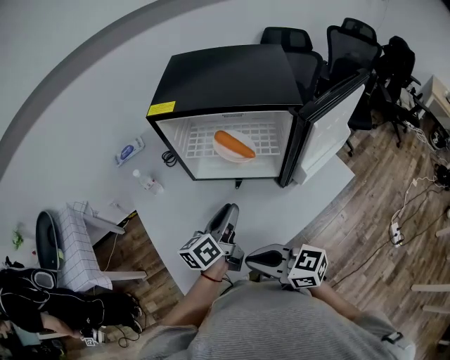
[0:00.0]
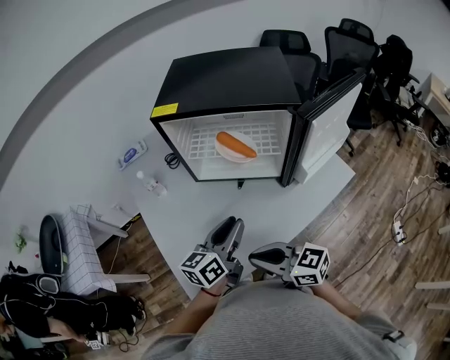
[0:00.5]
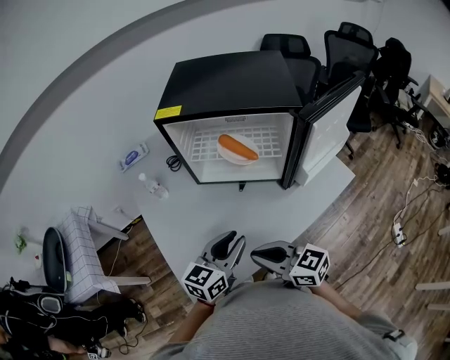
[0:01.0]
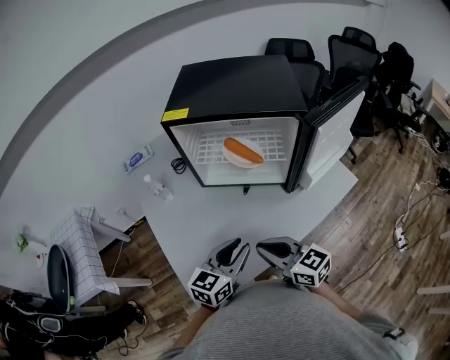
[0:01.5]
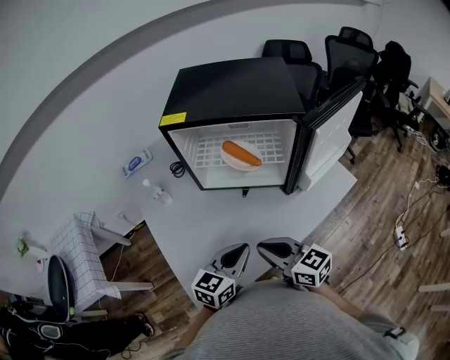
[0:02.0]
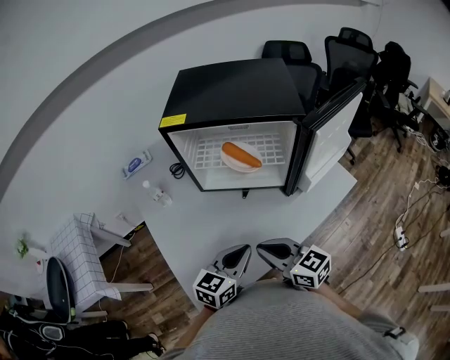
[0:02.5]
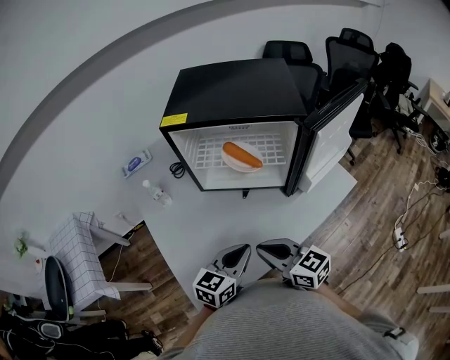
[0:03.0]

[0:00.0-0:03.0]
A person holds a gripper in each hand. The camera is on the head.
0:00.0 to 0:01.5: The left gripper shifts some 10 cm backward, and turns by some 40 degrees.
0:01.5 to 0:03.0: The left gripper closes.

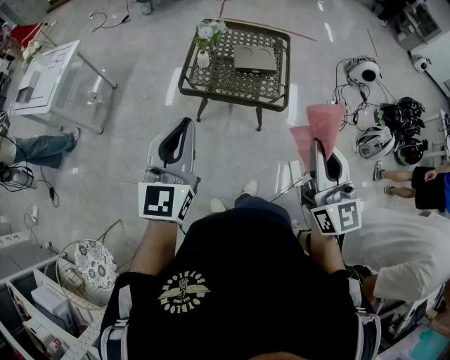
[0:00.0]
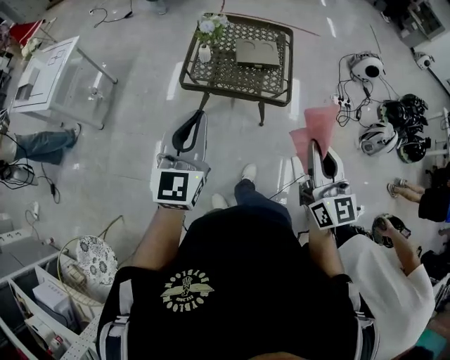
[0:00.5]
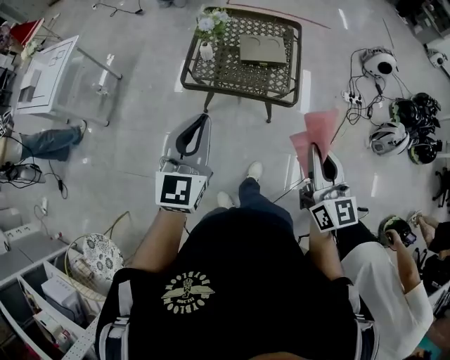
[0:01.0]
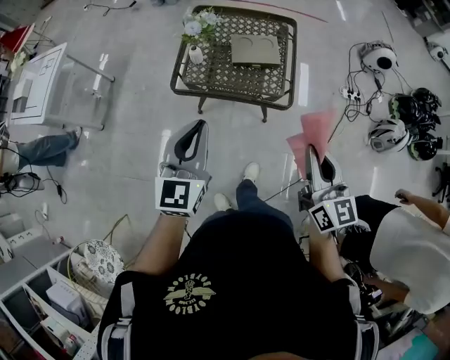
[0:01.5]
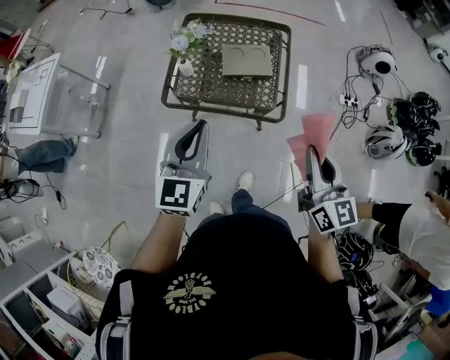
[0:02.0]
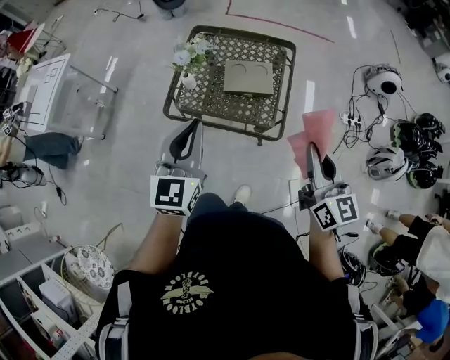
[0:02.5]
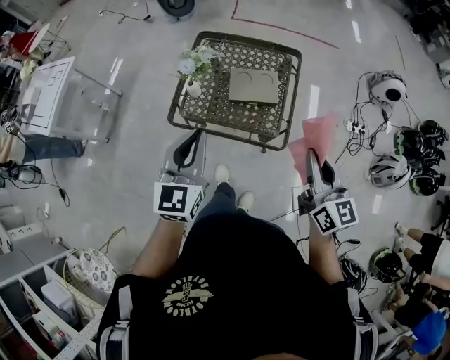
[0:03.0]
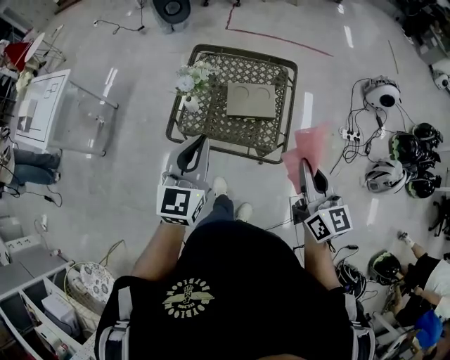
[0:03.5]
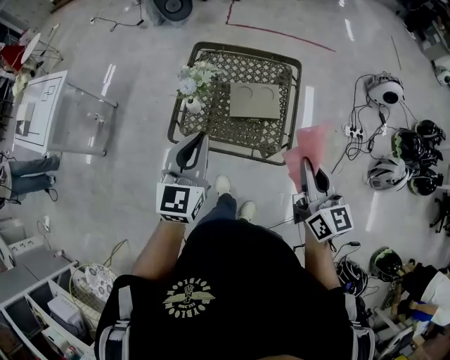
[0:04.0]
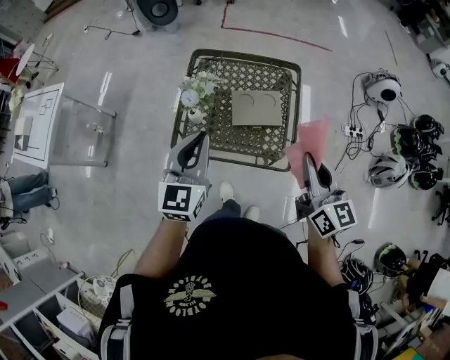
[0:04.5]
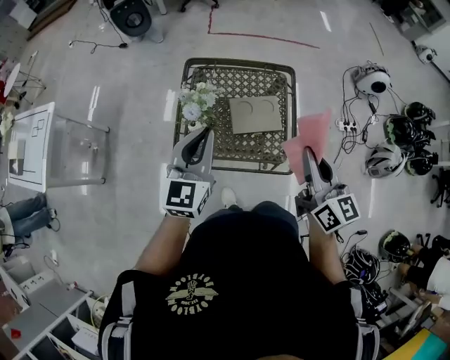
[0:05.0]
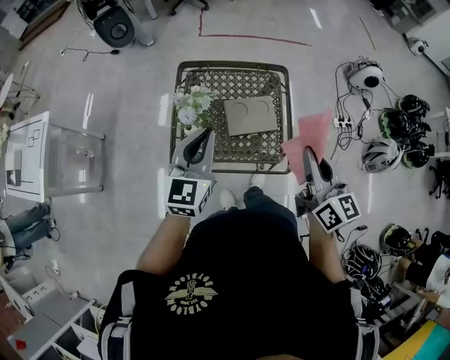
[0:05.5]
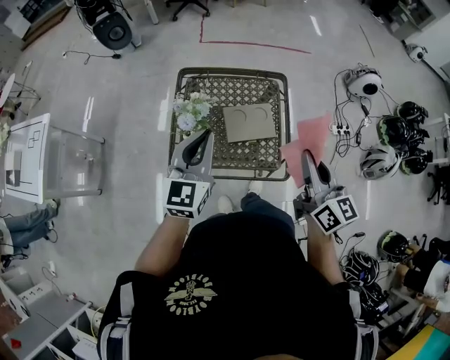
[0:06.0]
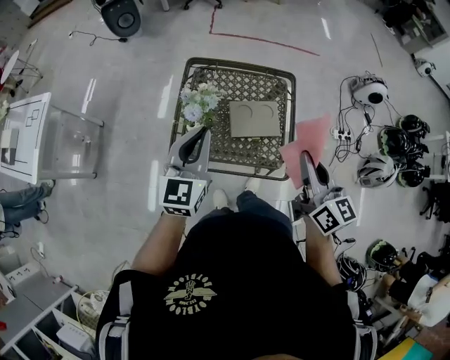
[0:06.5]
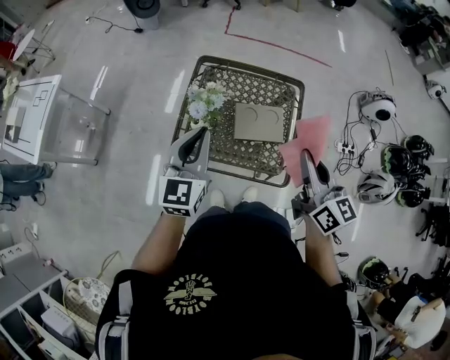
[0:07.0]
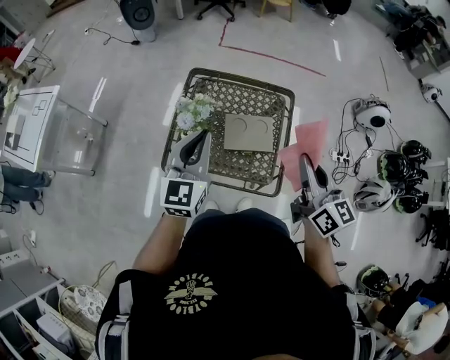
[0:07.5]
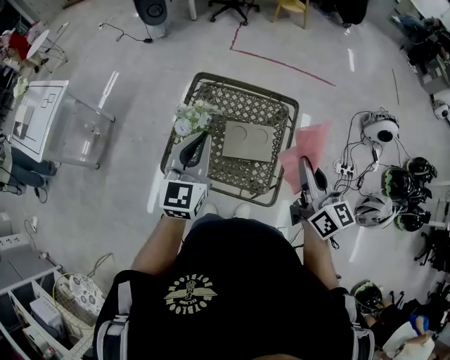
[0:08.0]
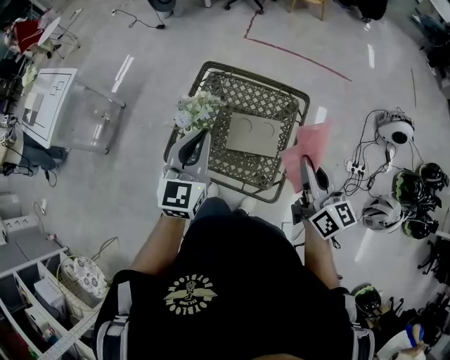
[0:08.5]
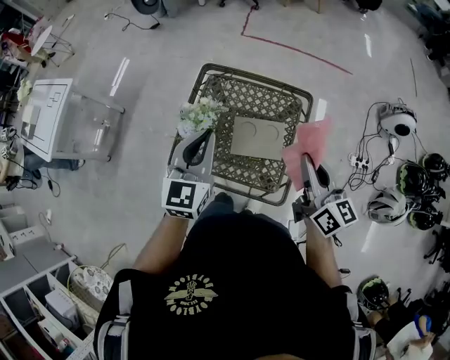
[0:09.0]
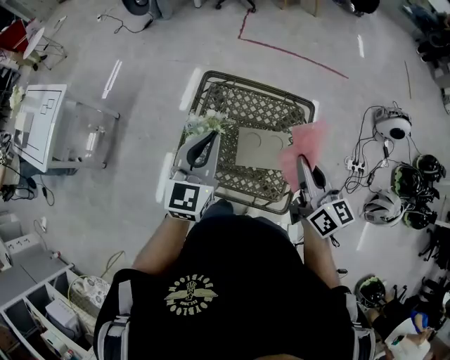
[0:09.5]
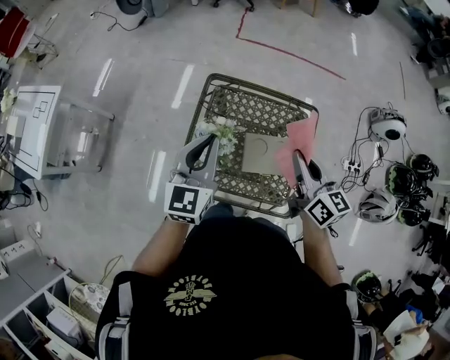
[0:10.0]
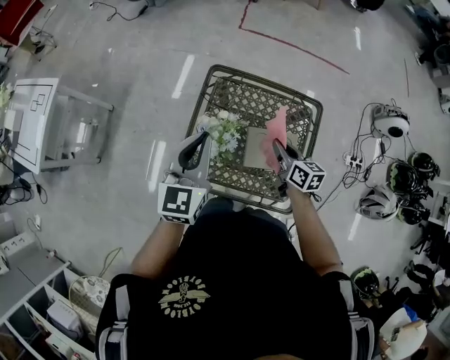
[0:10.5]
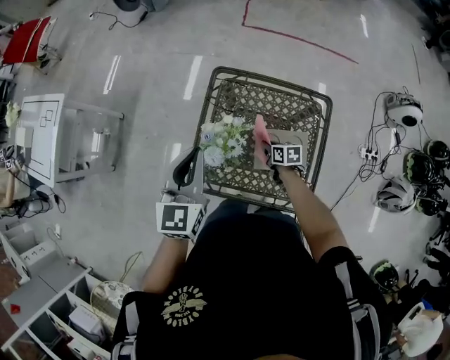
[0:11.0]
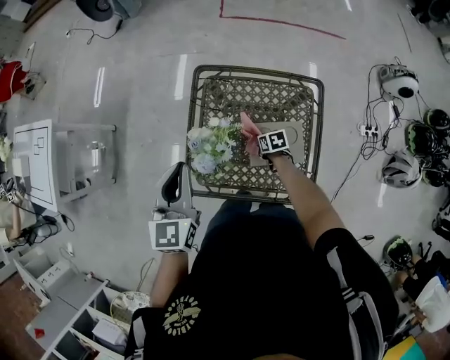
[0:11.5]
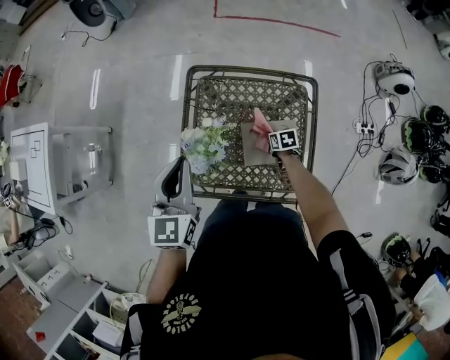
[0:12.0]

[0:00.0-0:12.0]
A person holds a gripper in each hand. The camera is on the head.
0:00.0 to 0:02.0: The right gripper travels forward, downward and to the right by about 25 cm. Meanwhile the left gripper moves forward, to the right and downward, roughly 25 cm.
0:02.0 to 0:04.0: Both grippers move forward, roughly 15 cm.
0:04.0 to 0:06.0: The left gripper goes some 10 cm forward. Meanwhile the right gripper heads forward and to the left, covering roughly 10 cm.
0:06.0 to 0:08.0: The left gripper changes place by about 5 cm; the right gripper heads forward and to the right, covering approximately 10 cm.
0:08.0 to 0:10.0: The left gripper goes about 15 cm forward and to the left. The right gripper is displaced forward, to the left and downward by roughly 20 cm.
0:10.0 to 0:12.0: The right gripper moves downward, roughly 40 cm, and tilts its fingers approximately 50 degrees downward.

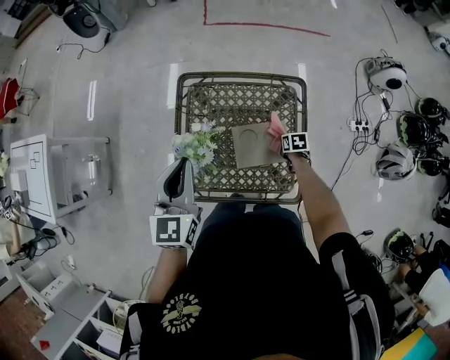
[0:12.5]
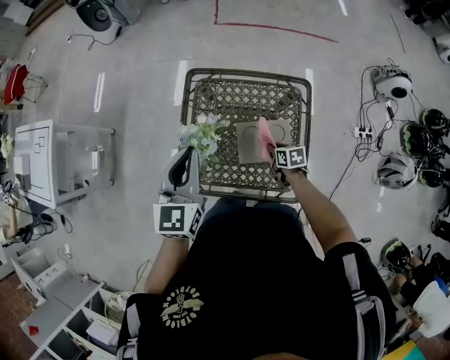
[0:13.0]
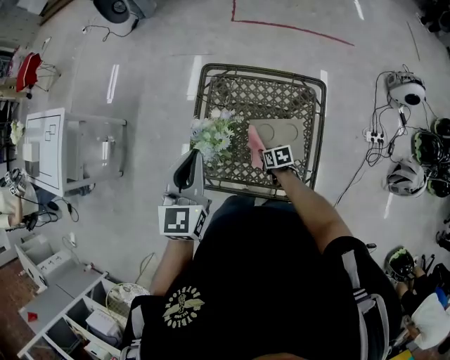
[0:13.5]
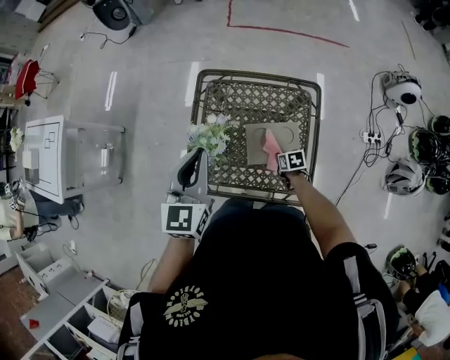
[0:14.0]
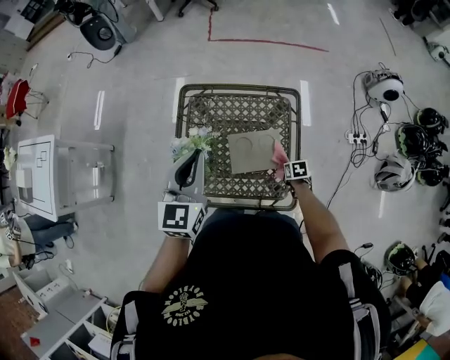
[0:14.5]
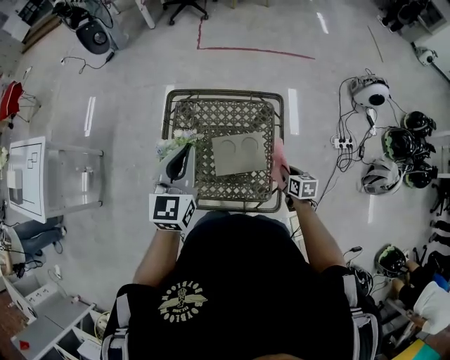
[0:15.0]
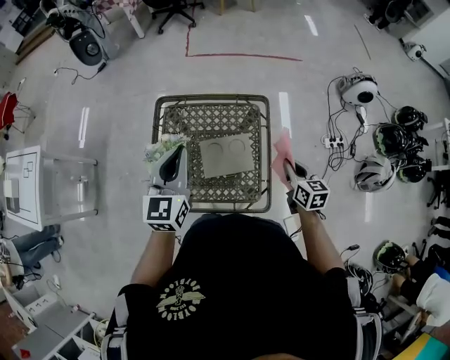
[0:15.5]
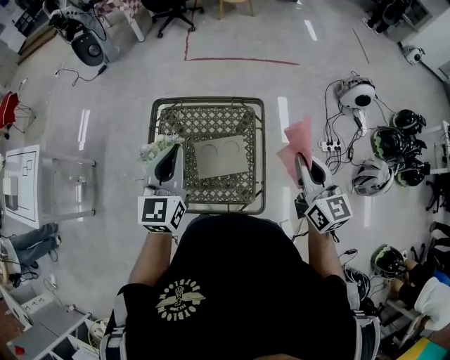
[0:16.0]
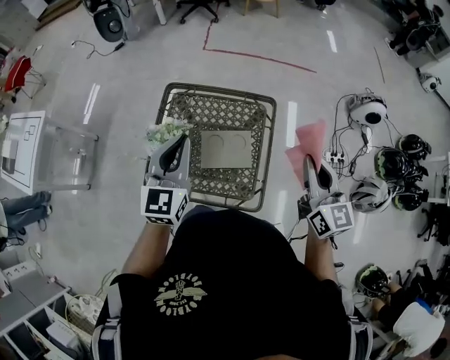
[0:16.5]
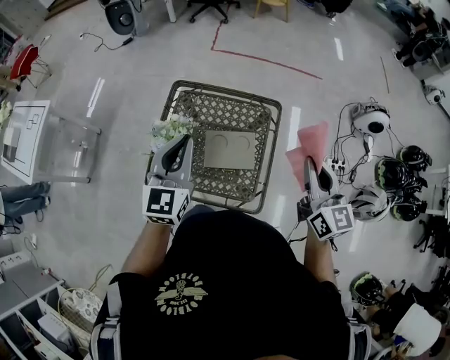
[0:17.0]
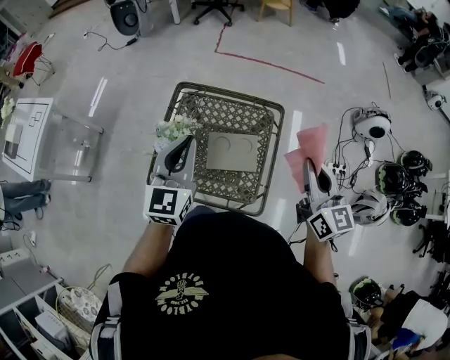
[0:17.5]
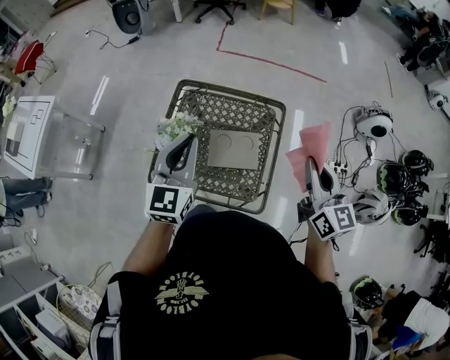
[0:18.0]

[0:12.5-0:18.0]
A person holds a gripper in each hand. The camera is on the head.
0:12.5 to 0:14.5: The left gripper travels to the right by some 5 cm; the right gripper travels backward by approximately 10 cm, and moves roughly 20 cm to the left and comes back.
0:14.5 to 0:16.0: The right gripper moves upward, some 50 cm, and points its fingers about 60 degrees further upward. The left gripper moves to the right, roughly 5 cm.
0:16.0 to 0:18.0: The grippers move only a little.

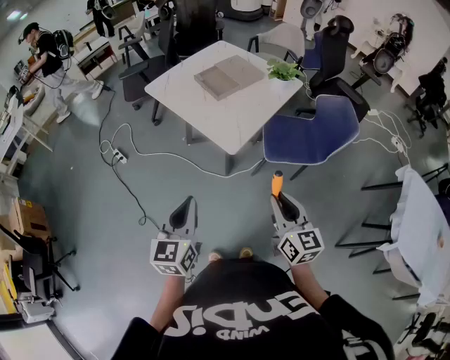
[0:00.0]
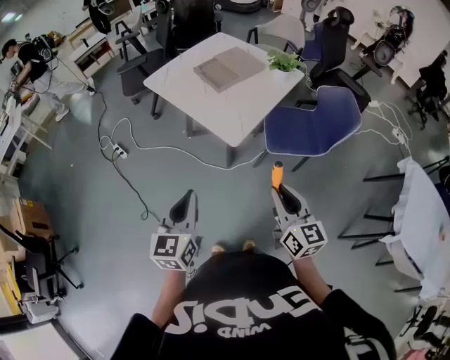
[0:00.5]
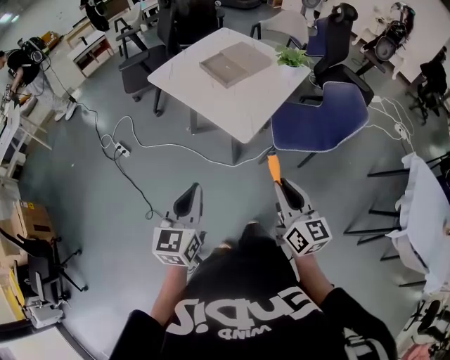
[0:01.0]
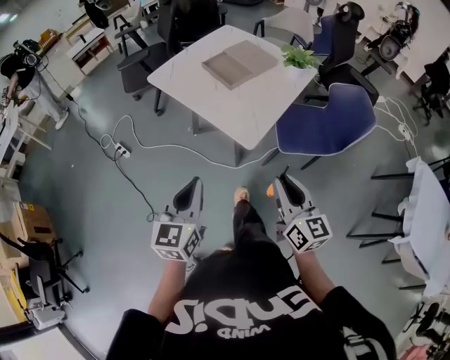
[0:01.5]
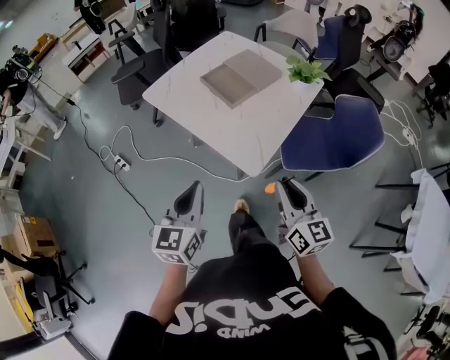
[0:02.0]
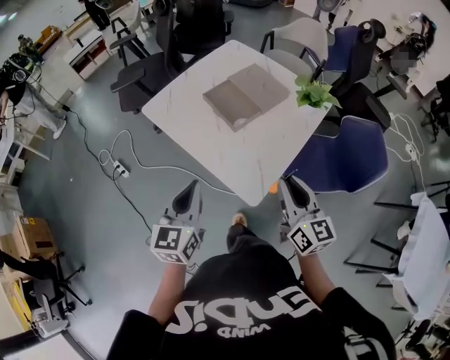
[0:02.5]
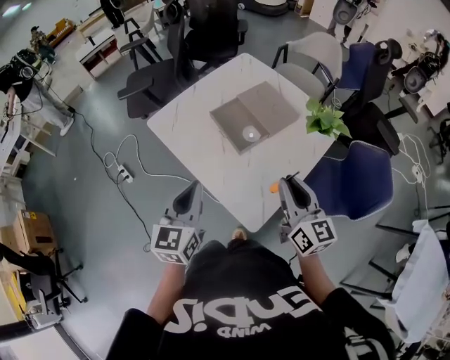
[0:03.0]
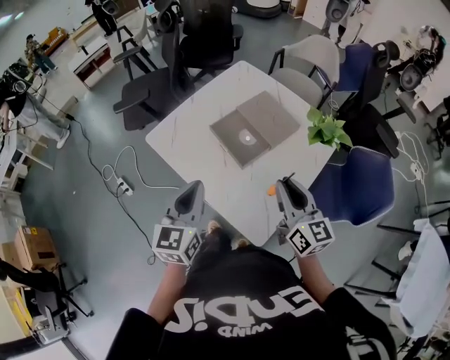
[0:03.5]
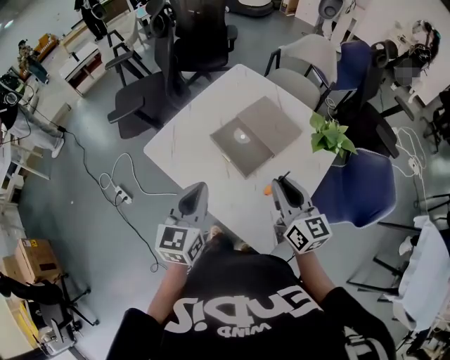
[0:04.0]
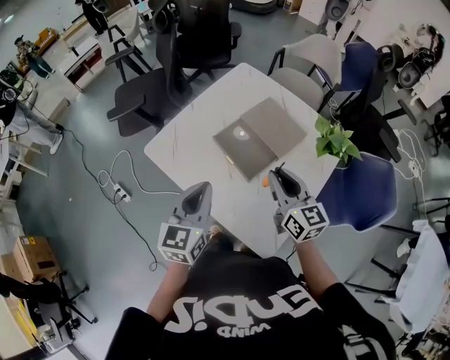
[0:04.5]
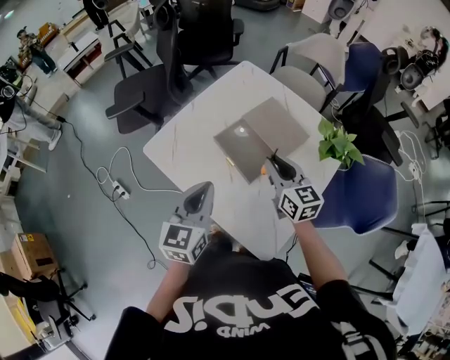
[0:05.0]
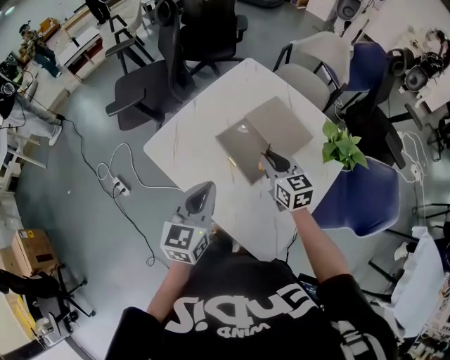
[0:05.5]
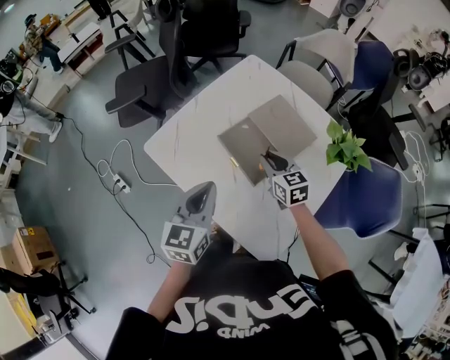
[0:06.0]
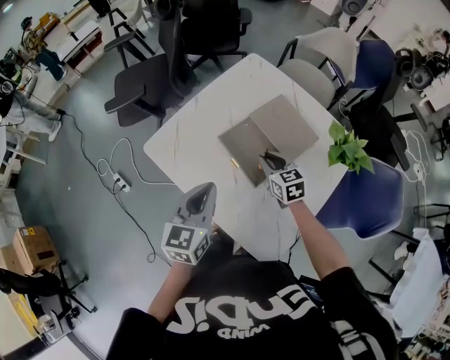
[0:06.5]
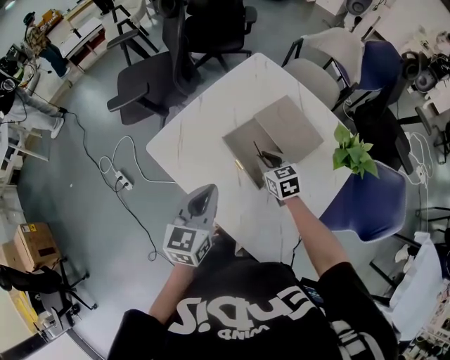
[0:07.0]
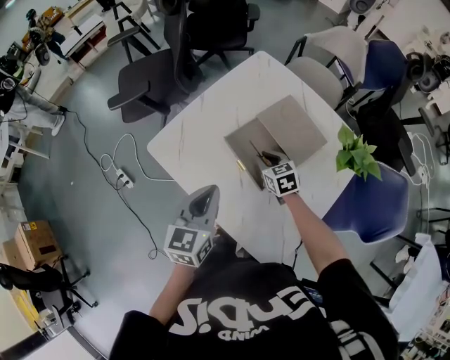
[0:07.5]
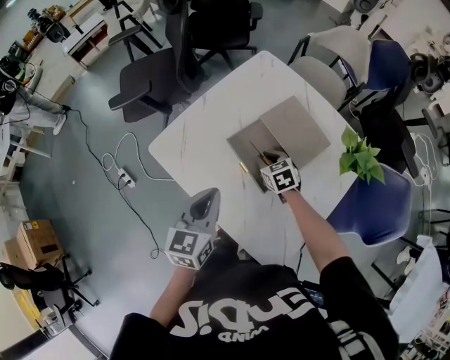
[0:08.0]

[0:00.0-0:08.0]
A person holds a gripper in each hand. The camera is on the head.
0:00.0 to 0:02.0: Both grippers travel together forward, about 20 cm.
0:02.0 to 0:04.0: Both grippers travel together forward, roughly 30 cm.
0:04.0 to 0:06.0: The left gripper goes some 5 cm forward. The right gripper travels forward and downward by about 20 cm, and turns by about 30 degrees.
0:06.0 to 0:08.0: The right gripper goes approximately 10 cm downward and forward, and changes its angle by approximately 20 degrees.
